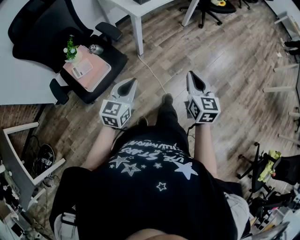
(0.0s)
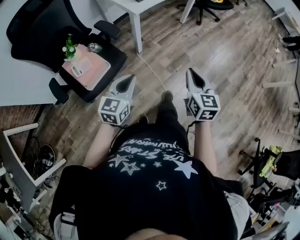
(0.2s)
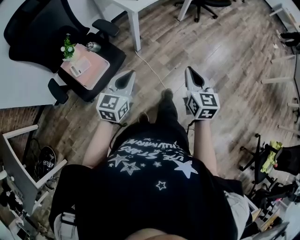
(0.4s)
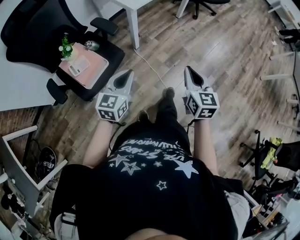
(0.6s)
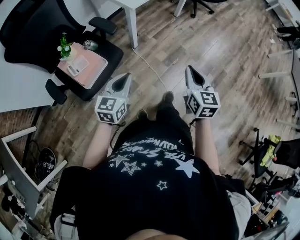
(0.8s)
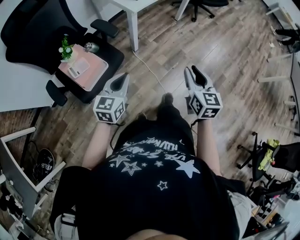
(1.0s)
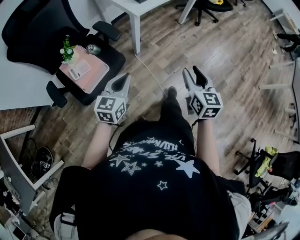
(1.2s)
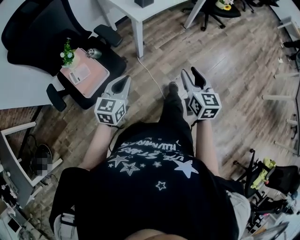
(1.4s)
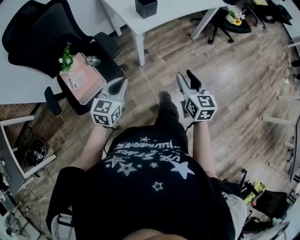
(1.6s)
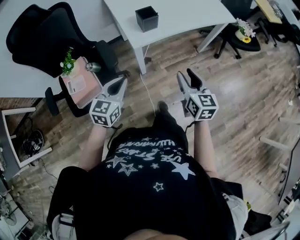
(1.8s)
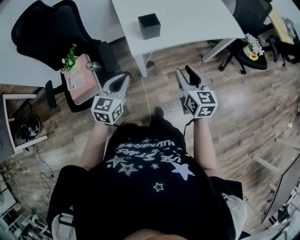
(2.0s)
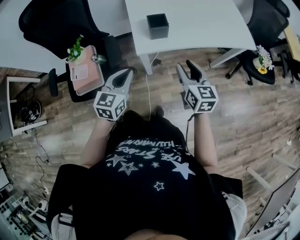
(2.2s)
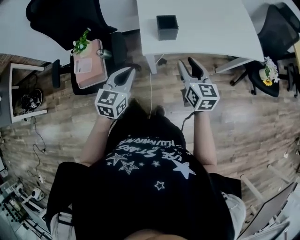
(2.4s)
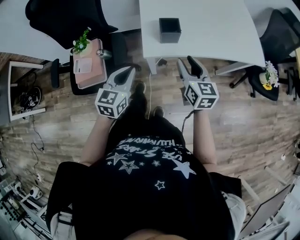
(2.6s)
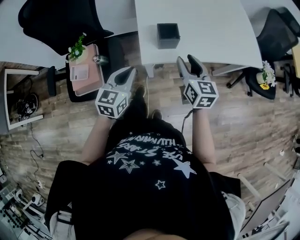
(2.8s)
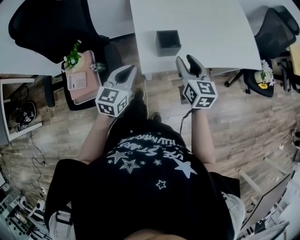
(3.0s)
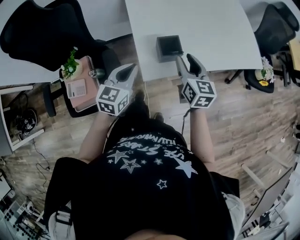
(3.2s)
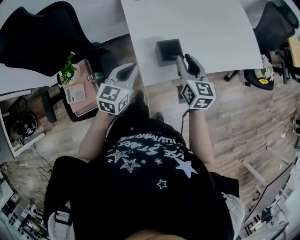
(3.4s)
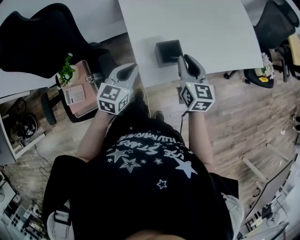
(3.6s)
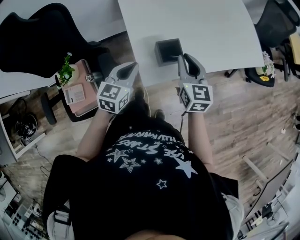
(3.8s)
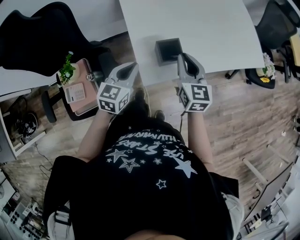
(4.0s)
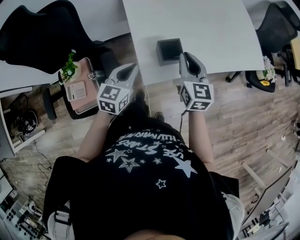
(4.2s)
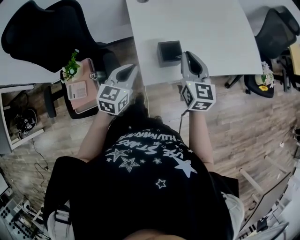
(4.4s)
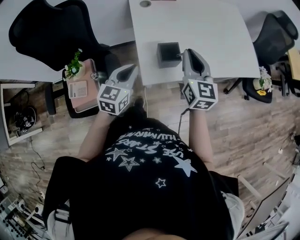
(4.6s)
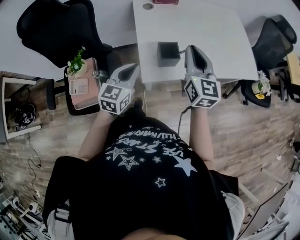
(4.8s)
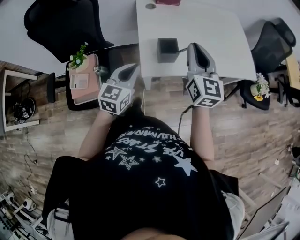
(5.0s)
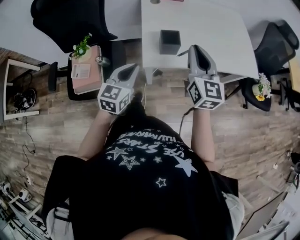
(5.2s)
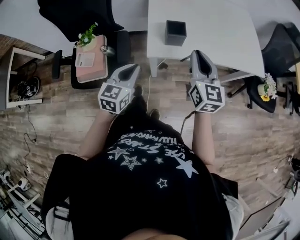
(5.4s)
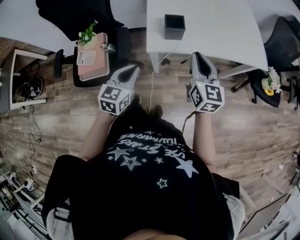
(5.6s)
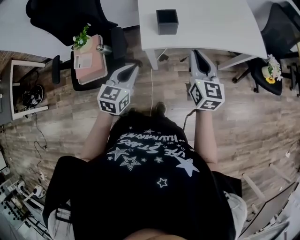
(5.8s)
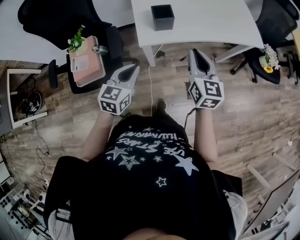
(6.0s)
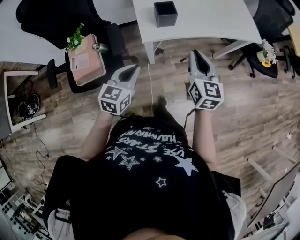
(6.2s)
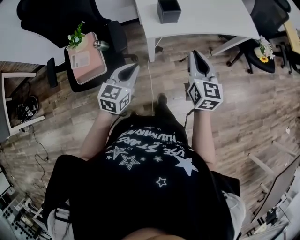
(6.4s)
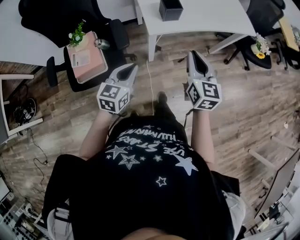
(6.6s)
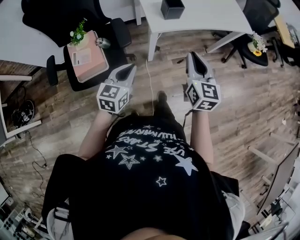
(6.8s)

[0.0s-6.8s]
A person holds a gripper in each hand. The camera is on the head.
0.0s to 1.4s: Both grippers move forward, some 10 cm. The right gripper opens up.
1.4s to 2.8s: The right gripper ends up some 40 cm from where it was, and turns by some 30 degrees; the left gripper moves roughly 30 cm, and rotates roughly 30 degrees.
2.8s to 4.0s: The grippers both shift forward by some 10 cm. The right gripper closes up.
4.0s to 5.4s: The left gripper shifts about 20 cm backward. The right gripper heads backward and upward, covering some 15 cm.
5.4s to 6.8s: The right gripper moves backward, approximately 20 cm. The left gripper moves backward and to the left, roughly 15 cm.

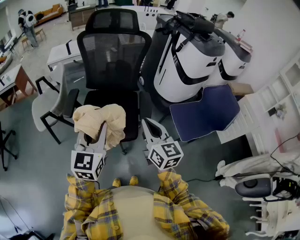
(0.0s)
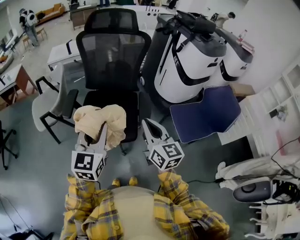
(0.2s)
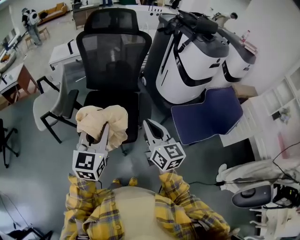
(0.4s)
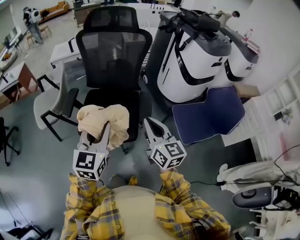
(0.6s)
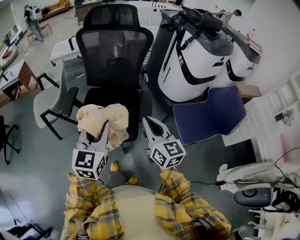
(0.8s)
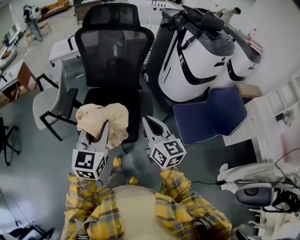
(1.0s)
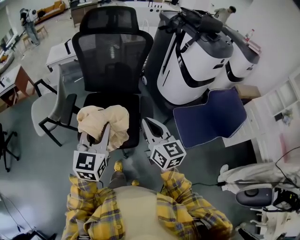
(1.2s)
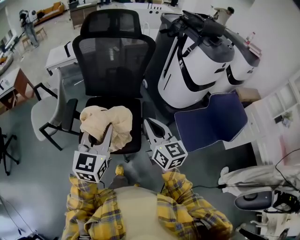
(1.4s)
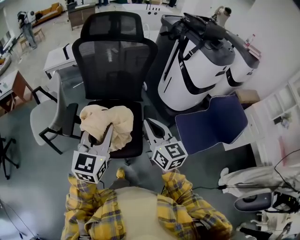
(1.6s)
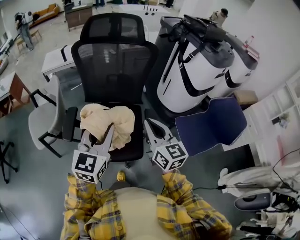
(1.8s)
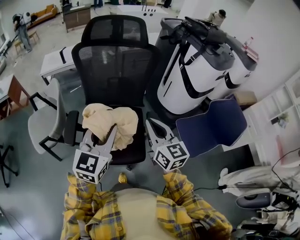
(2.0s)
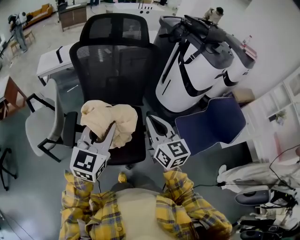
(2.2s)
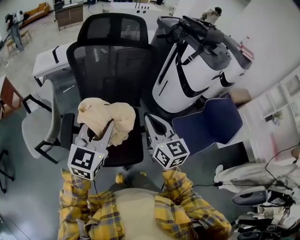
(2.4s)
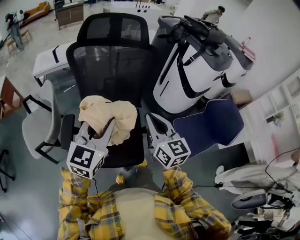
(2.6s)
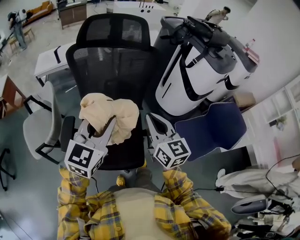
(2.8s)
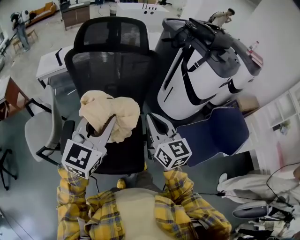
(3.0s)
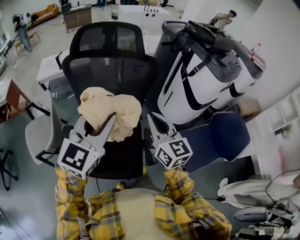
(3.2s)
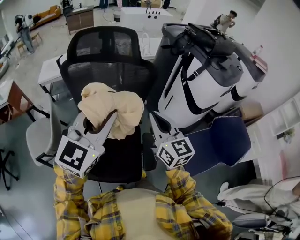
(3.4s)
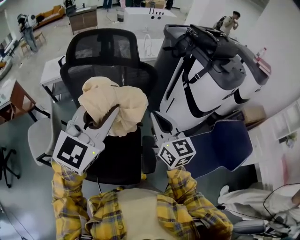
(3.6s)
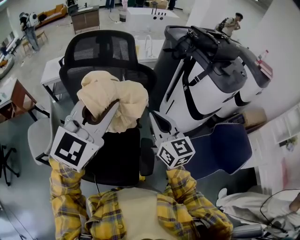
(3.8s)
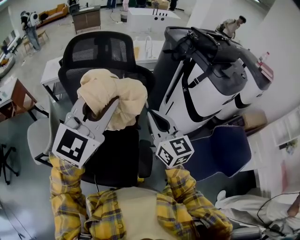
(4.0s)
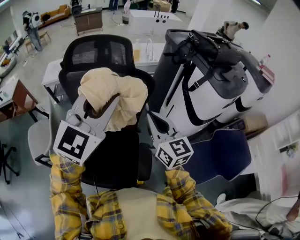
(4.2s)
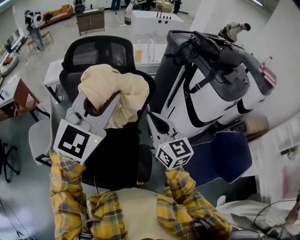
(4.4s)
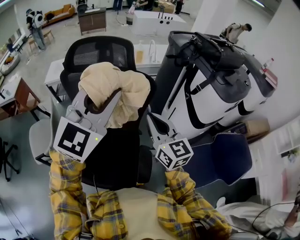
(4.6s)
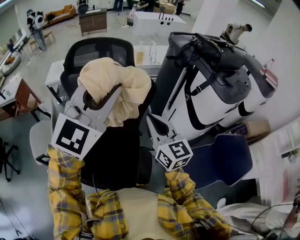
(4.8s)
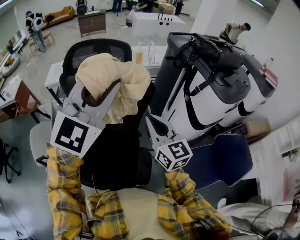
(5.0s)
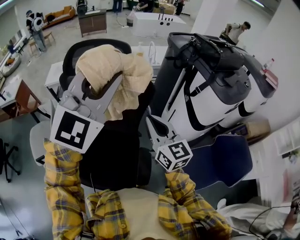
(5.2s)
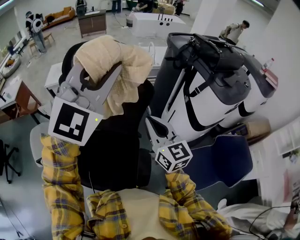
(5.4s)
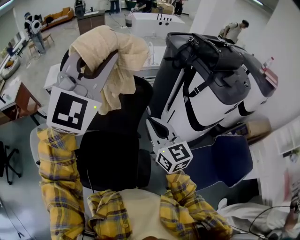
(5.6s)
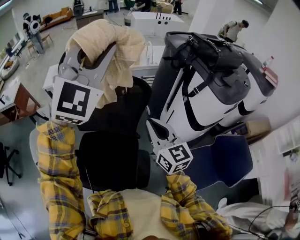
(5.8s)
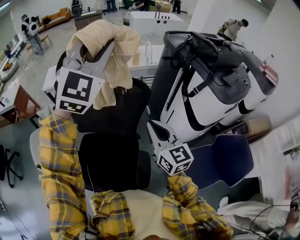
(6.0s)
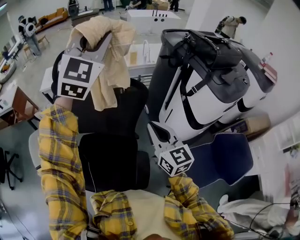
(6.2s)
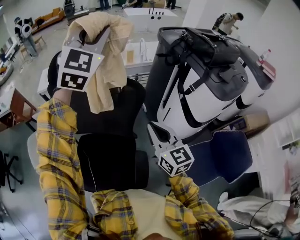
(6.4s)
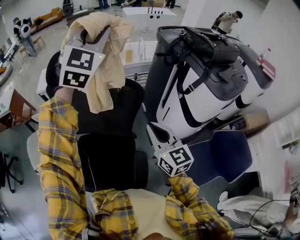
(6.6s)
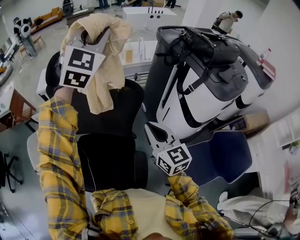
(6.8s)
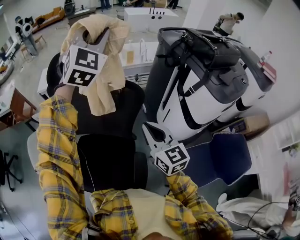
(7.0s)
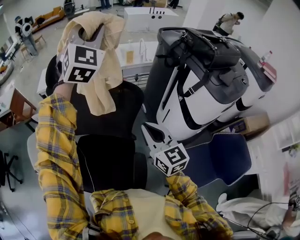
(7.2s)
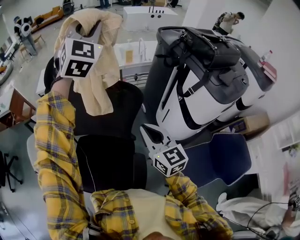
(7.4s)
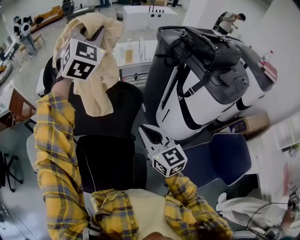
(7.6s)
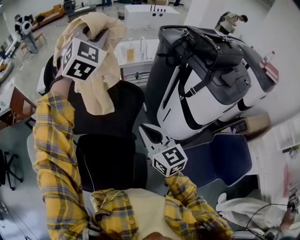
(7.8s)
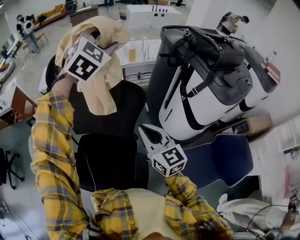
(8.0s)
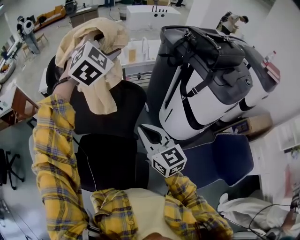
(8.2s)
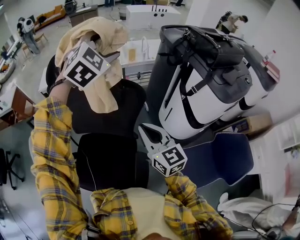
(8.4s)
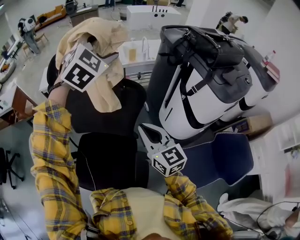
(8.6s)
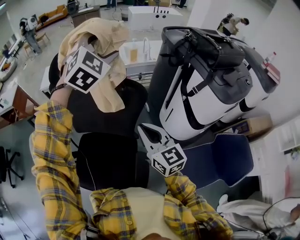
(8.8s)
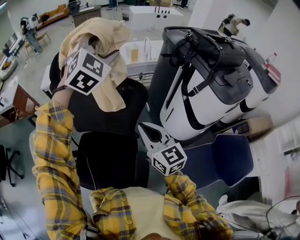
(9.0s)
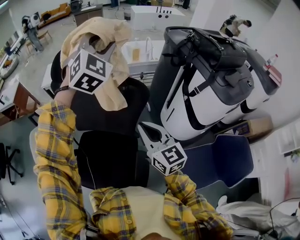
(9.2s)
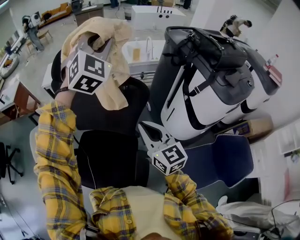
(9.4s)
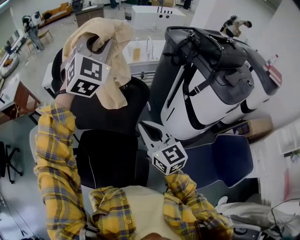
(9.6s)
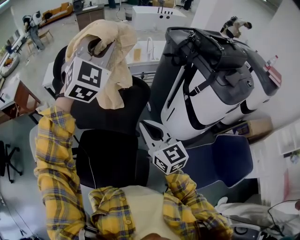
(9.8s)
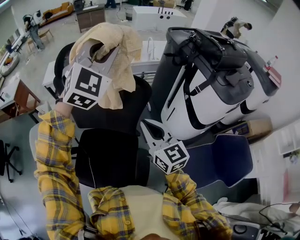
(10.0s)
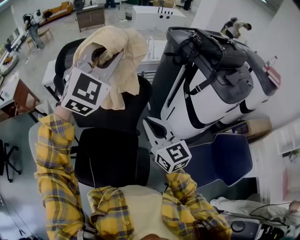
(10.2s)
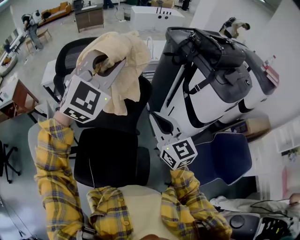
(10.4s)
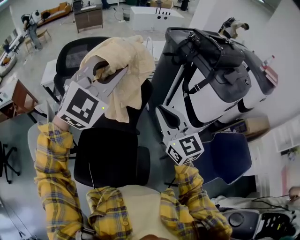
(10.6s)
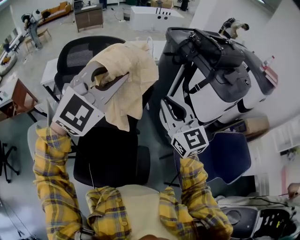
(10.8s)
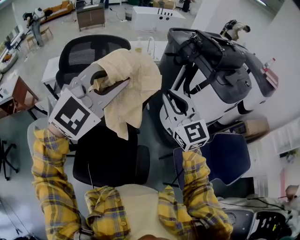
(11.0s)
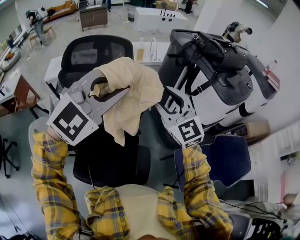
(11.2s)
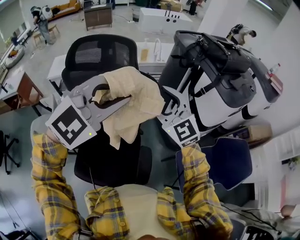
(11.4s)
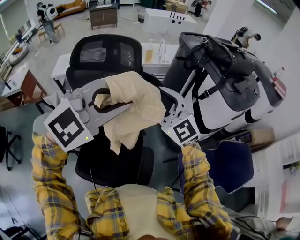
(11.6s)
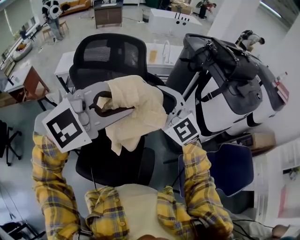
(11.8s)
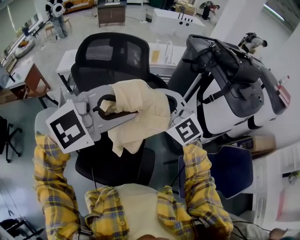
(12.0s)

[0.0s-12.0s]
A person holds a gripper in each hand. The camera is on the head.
0.0s to 1.6s: The two grippers go approximately 15 cm forward.
1.6s to 3.0s: The grippers both shift forward by approximately 15 cm.
3.0s to 4.4s: The left gripper is displaced forward, upward and to the right by about 20 cm. The right gripper goes about 15 cm forward and to the right.
4.4s to 6.0s: The left gripper travels forward and upward by approximately 15 cm, and rotates about 20 degrees.
6.0s to 7.6s: The left gripper moves forward, some 15 cm.
7.6s to 9.0s: The left gripper moves downward, approximately 5 cm, and opens its fingers.
9.0s to 10.4s: The left gripper goes roughly 10 cm backward, and closes up.
10.4s to 12.0s: The left gripper heads backward, covering some 15 cm, and changes its angle by some 30 degrees. Meanwhile the right gripper is displaced to the left by some 5 cm, swivels about 40 degrees, and opens its fingers.

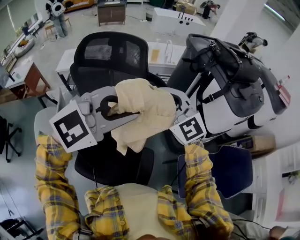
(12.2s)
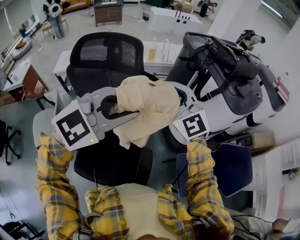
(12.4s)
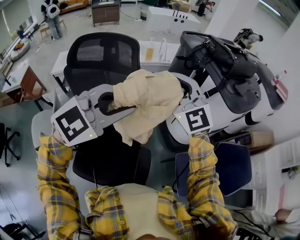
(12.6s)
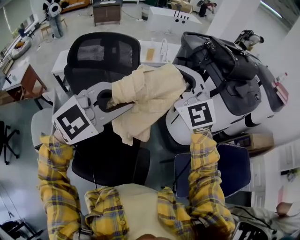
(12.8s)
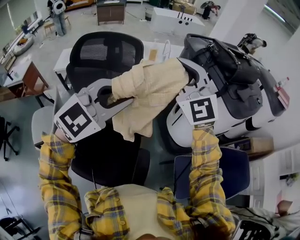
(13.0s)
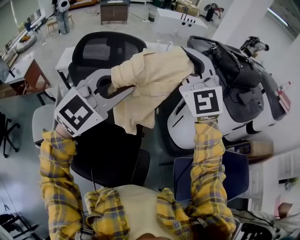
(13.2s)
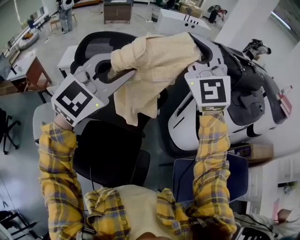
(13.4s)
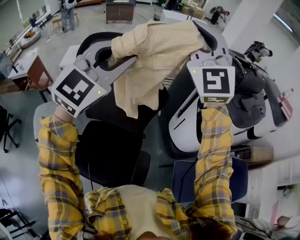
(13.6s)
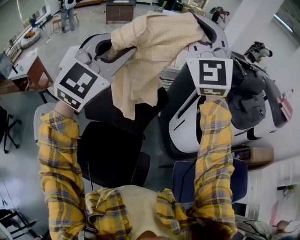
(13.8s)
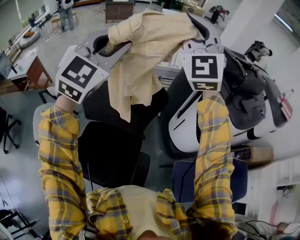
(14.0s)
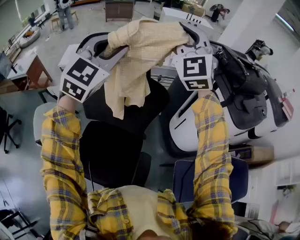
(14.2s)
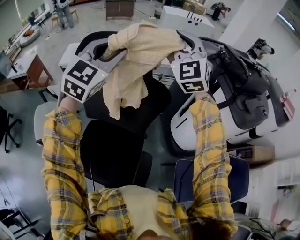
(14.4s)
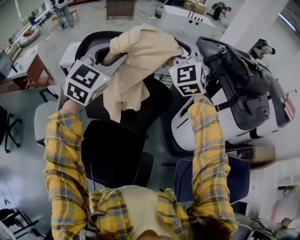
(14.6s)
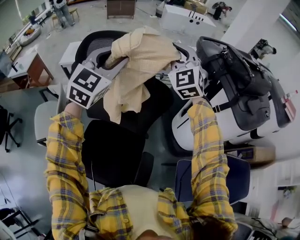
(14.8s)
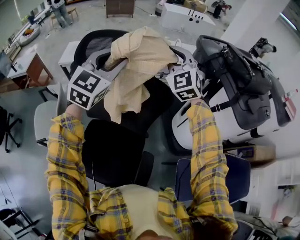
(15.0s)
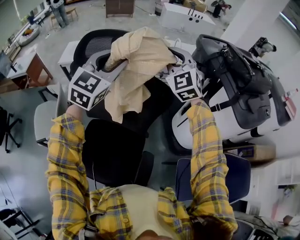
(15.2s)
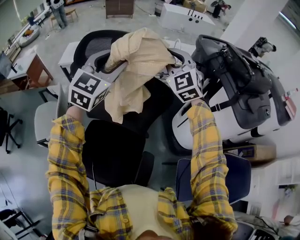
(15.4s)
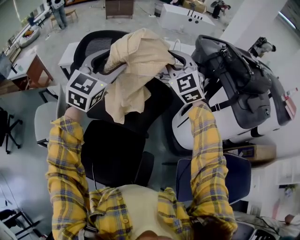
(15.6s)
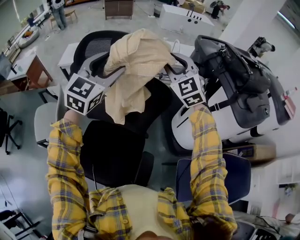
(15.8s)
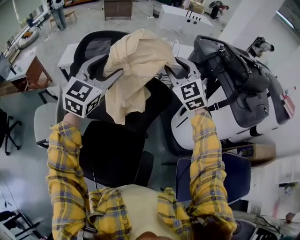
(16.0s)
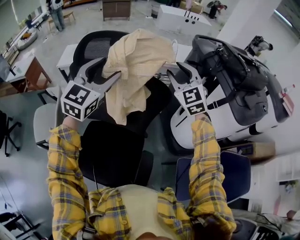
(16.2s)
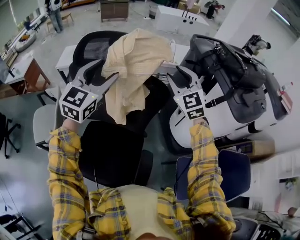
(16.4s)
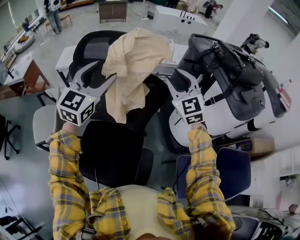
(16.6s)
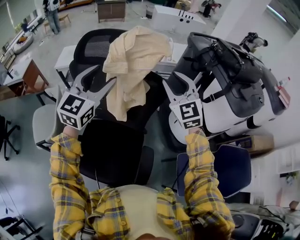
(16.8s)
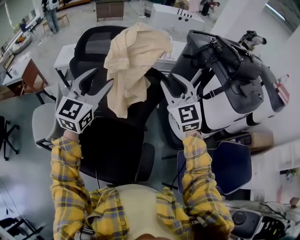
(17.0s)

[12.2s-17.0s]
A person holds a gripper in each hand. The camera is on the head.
12.2s to 13.8s: The left gripper moves forward and upward, some 20 cm, and turns by roughly 40 degrees, while the right gripper shifts approximately 25 cm upward and forward, and rotates roughly 40 degrees.
13.8s to 15.4s: The right gripper heads downward and forward, covering approximately 25 cm, and turns by approximately 30 degrees, while the left gripper is displaced downward and forward by about 15 cm.
15.4s to 17.0s: The grippers both shift backward by some 15 cm. The right gripper opens its fingers.
